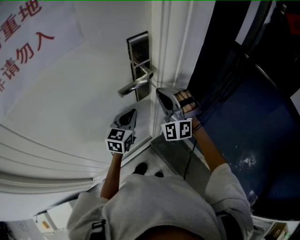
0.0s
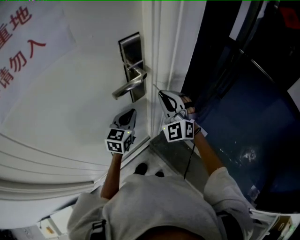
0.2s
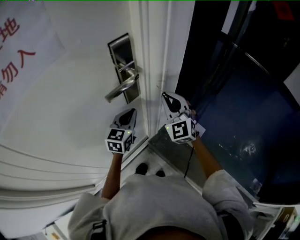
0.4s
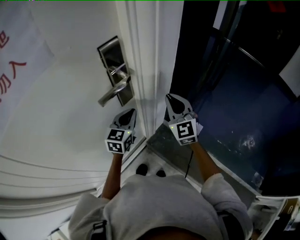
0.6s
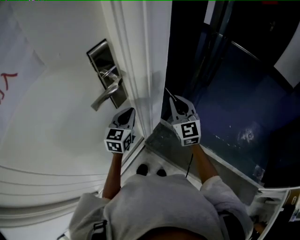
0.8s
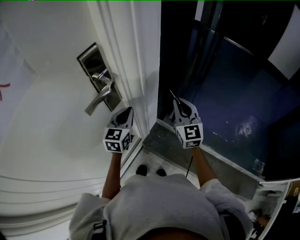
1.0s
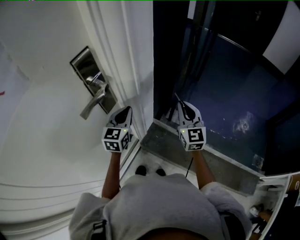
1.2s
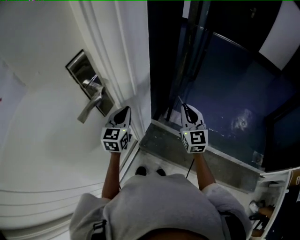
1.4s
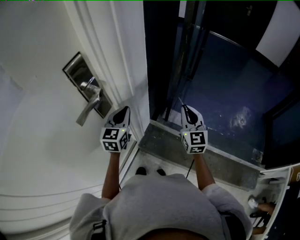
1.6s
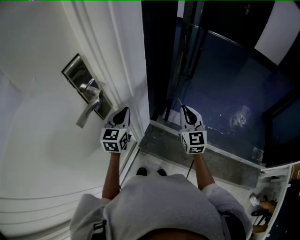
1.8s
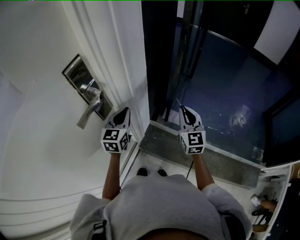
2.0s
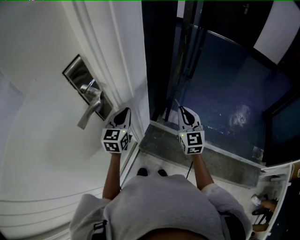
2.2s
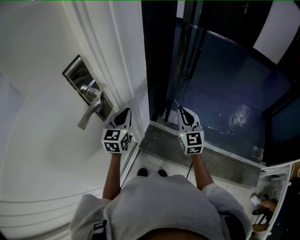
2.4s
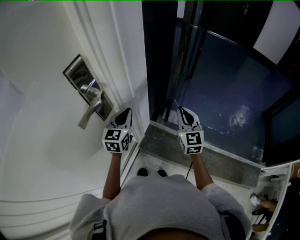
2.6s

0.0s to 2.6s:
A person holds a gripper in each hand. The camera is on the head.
0.0s to 1.2s: The right gripper moves to the right, about 25 cm, and rolls clockwise, seen from behind, by roughly 60 degrees, while the left gripper moves to the right and forward, roughly 10 cm.
1.2s to 2.6s: The grippers stay close to where they were, moving slightly.

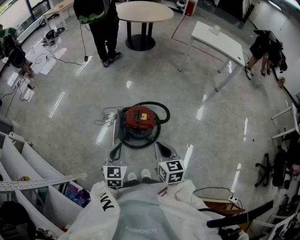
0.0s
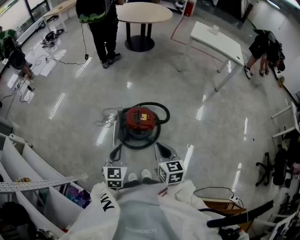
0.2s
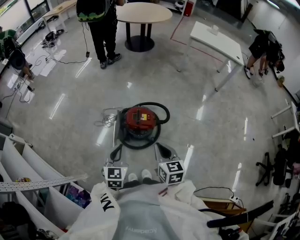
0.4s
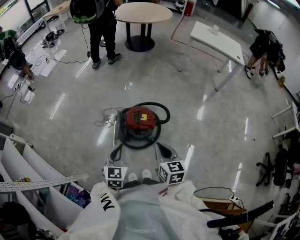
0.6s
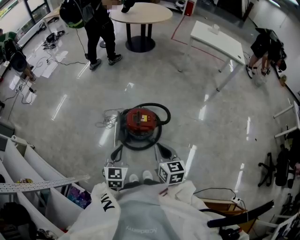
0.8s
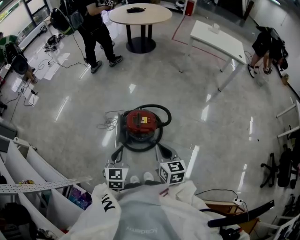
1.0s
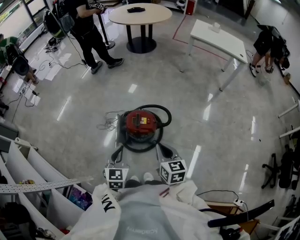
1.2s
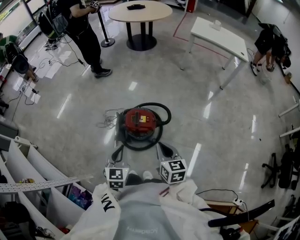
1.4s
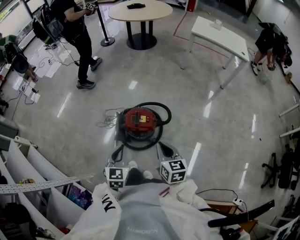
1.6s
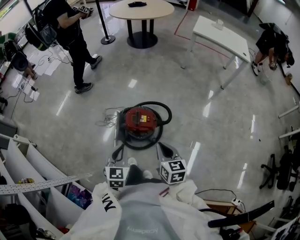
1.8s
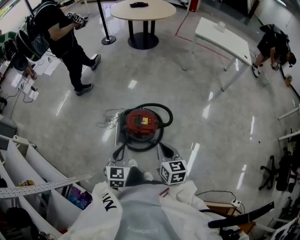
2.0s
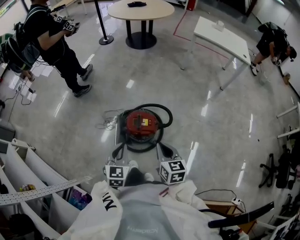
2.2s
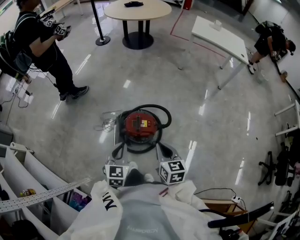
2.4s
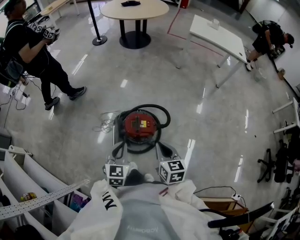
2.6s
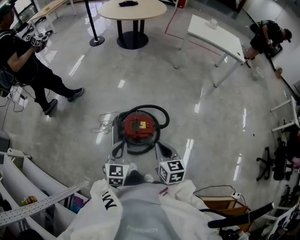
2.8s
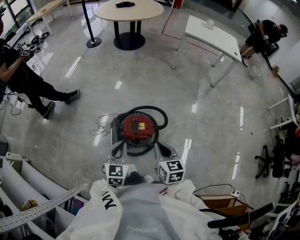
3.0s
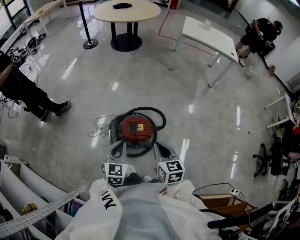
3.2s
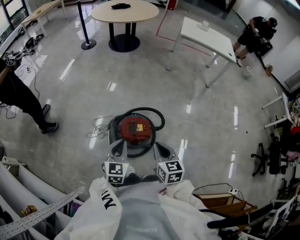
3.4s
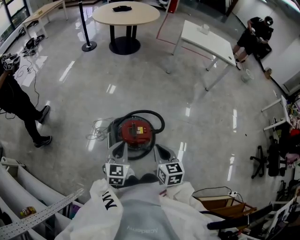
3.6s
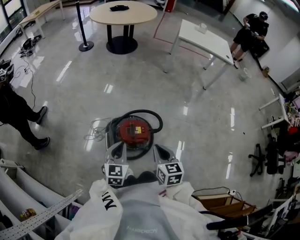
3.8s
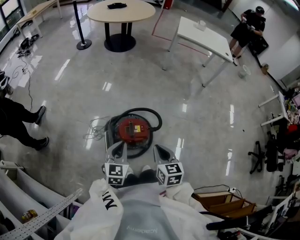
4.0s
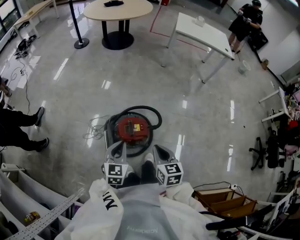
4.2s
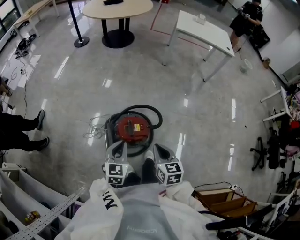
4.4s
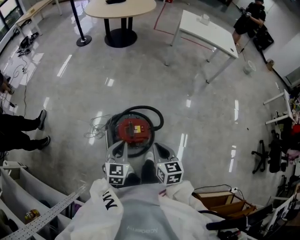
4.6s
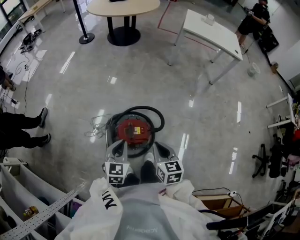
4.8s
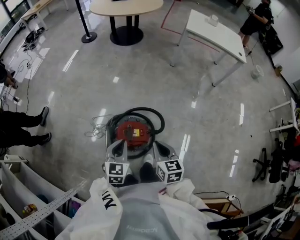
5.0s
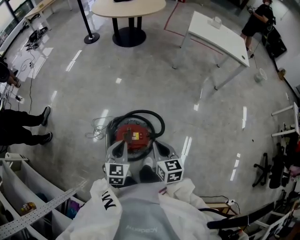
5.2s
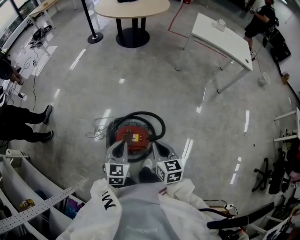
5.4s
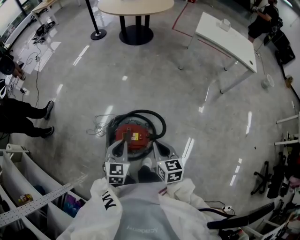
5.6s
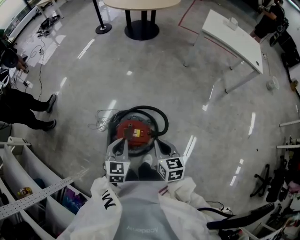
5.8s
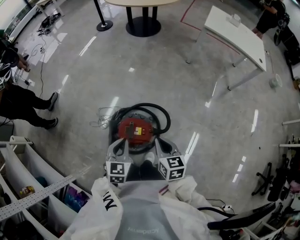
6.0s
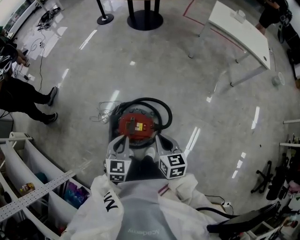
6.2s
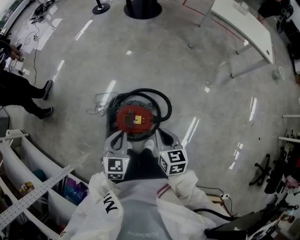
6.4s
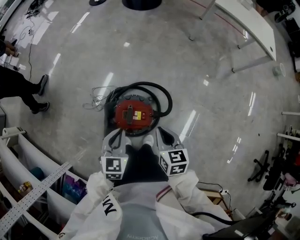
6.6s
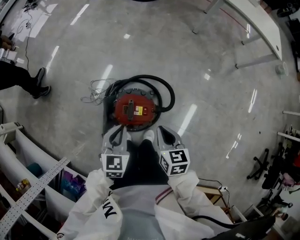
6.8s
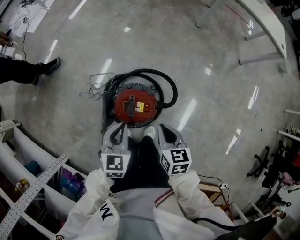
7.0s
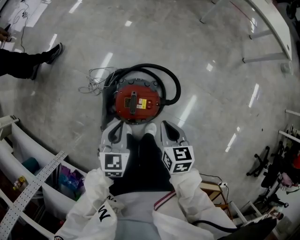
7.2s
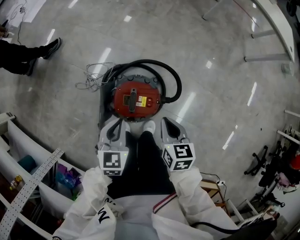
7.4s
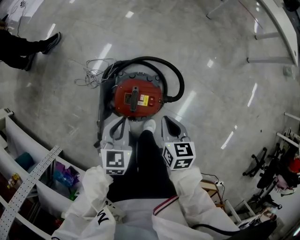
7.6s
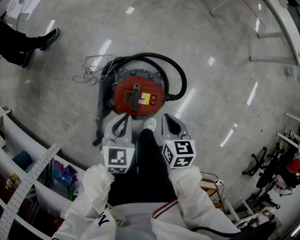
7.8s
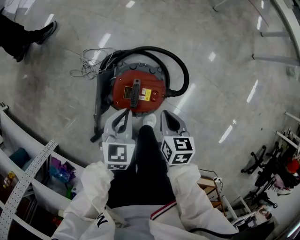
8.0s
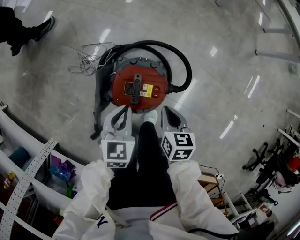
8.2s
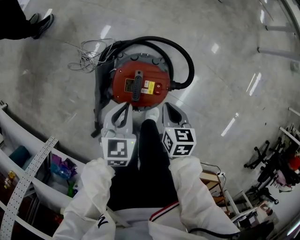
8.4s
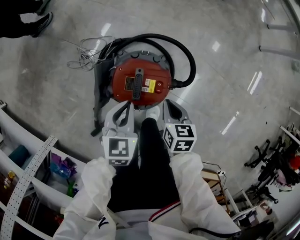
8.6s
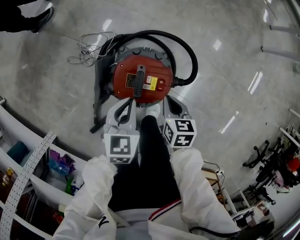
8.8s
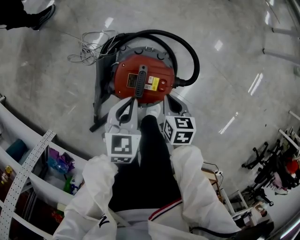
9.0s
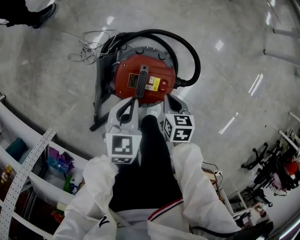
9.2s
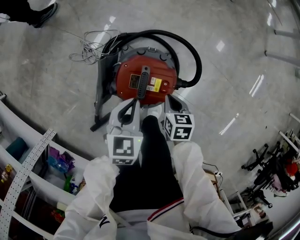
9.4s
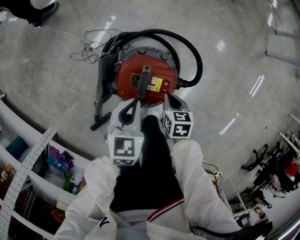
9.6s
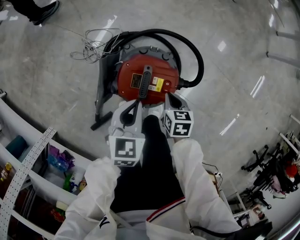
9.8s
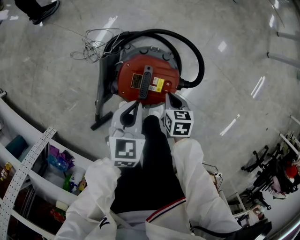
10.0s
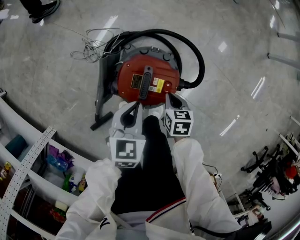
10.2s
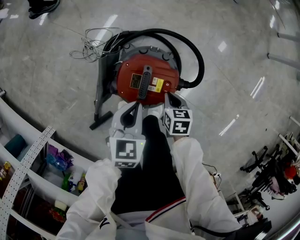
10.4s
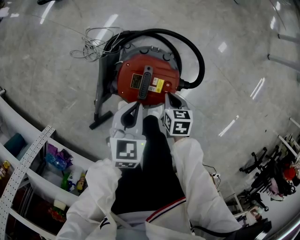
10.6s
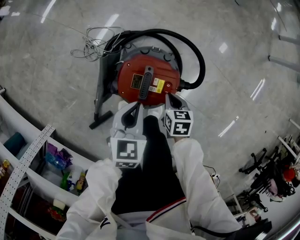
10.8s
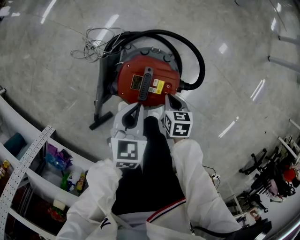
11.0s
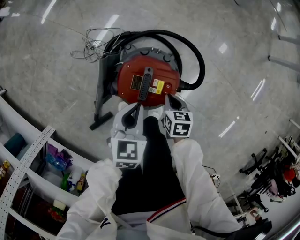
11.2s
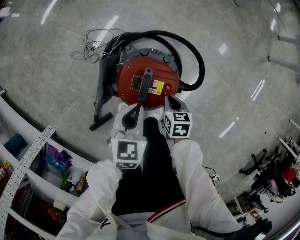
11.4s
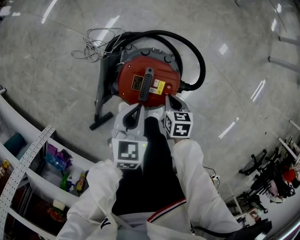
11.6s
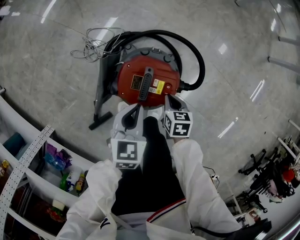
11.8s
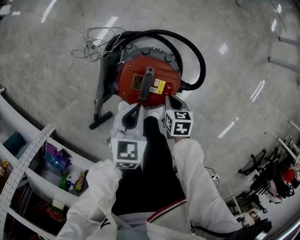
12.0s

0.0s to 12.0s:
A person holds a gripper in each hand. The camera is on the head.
0.0s to 1.6s: The left gripper ends up approximately 5 cm from where it was, while the right gripper ends up about 5 cm from where it was.
1.6s to 3.0s: Both grippers travel together forward, some 10 cm.
3.0s to 4.4s: The grippers stay close to where they were, moving slightly.
4.4s to 6.0s: The left gripper moves to the right and forward, roughly 10 cm, while the right gripper shifts roughly 15 cm forward and to the right.
6.0s to 7.6s: Both grippers travel together downward, some 15 cm.
7.6s to 9.0s: The left gripper heads downward, covering approximately 10 cm, while the right gripper travels downward by about 15 cm.
9.0s to 10.4s: The right gripper is displaced downward by about 5 cm.
10.4s to 12.0s: Neither gripper changes place.

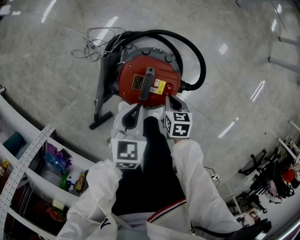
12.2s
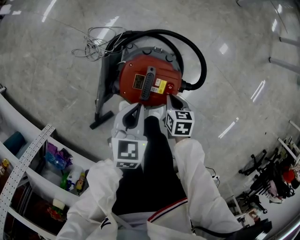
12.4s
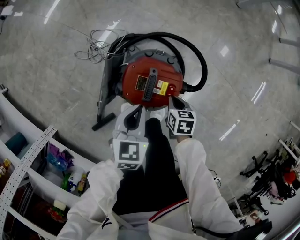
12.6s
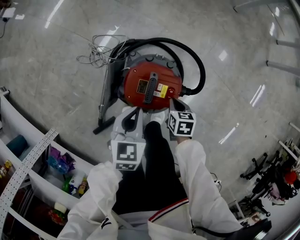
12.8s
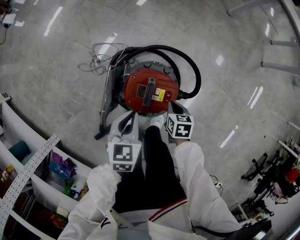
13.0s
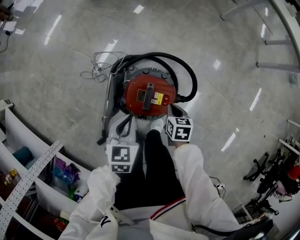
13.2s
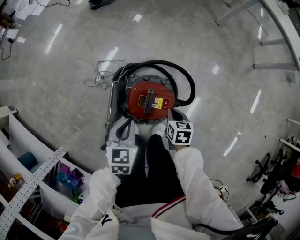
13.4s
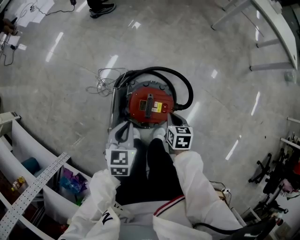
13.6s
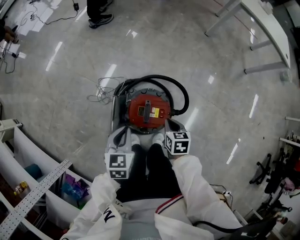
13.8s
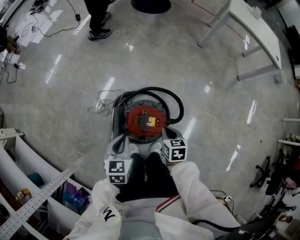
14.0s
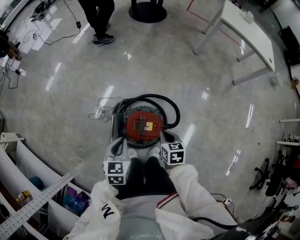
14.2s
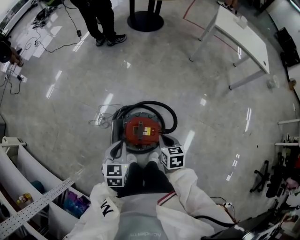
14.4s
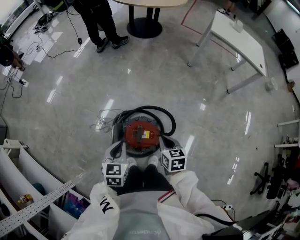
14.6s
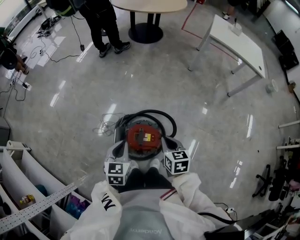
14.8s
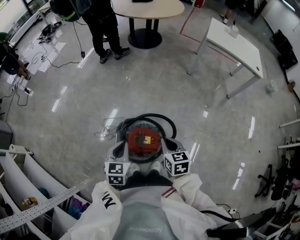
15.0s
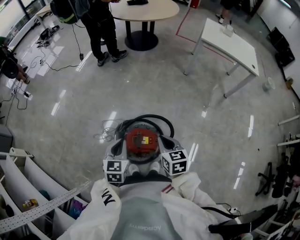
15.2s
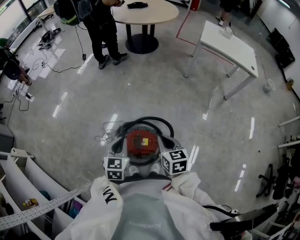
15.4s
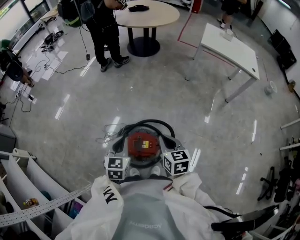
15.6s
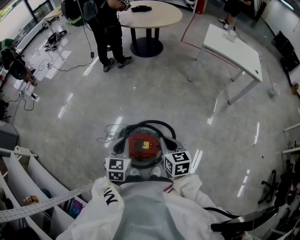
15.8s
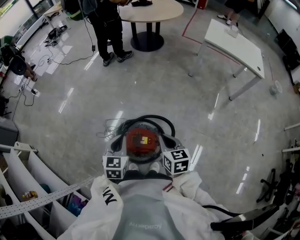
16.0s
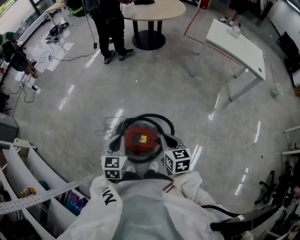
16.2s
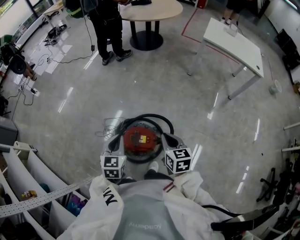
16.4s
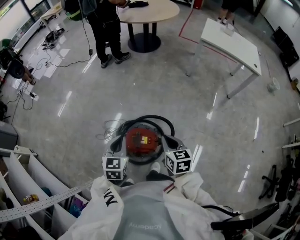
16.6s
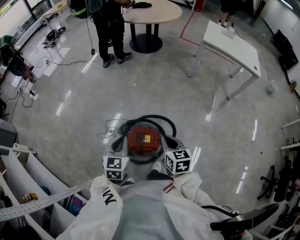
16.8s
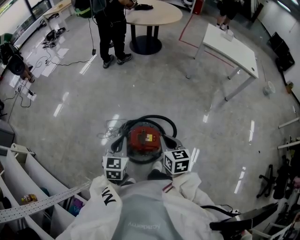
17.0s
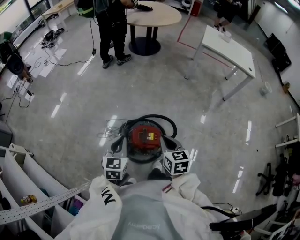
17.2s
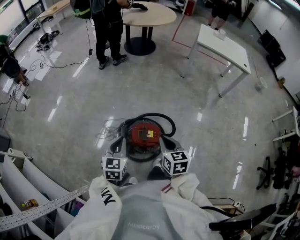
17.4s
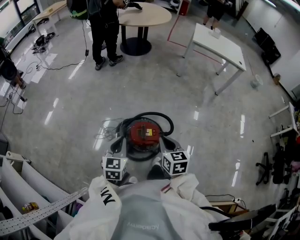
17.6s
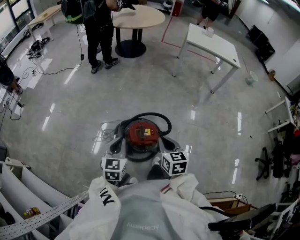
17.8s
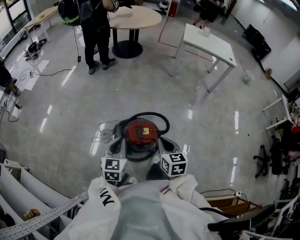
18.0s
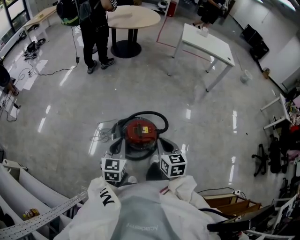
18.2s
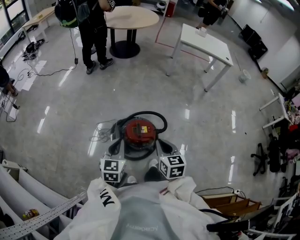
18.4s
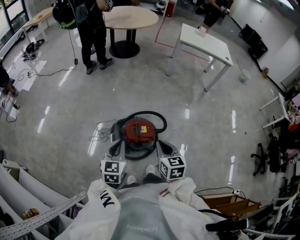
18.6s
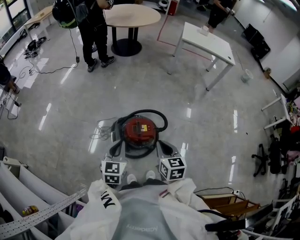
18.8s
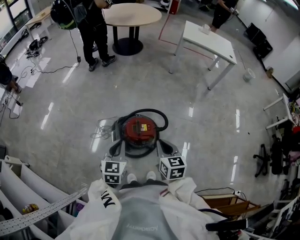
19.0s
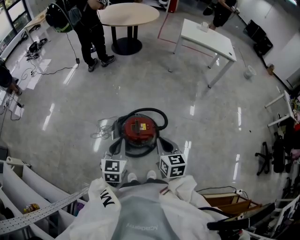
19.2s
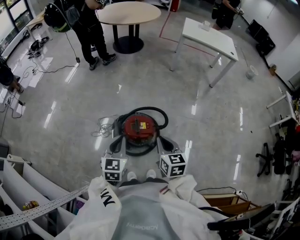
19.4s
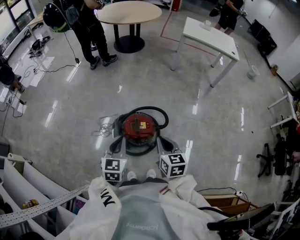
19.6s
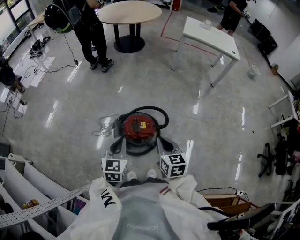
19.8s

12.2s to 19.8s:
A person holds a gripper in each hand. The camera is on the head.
12.2s to 13.8s: The right gripper is displaced upward by about 15 cm; the left gripper heads upward and to the left, covering approximately 15 cm.
13.8s to 15.2s: The right gripper travels upward by approximately 25 cm, and swivels approximately 20 degrees. The left gripper shifts about 15 cm upward.
15.2s to 16.8s: The grippers move only a little.
16.8s to 18.2s: Both grippers travel together backward and to the left, roughly 15 cm.
18.2s to 19.8s: The left gripper goes approximately 5 cm to the right.

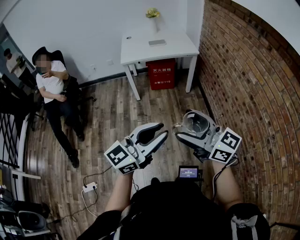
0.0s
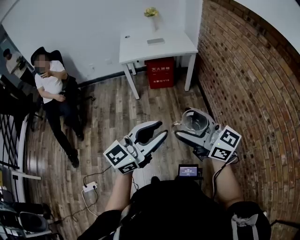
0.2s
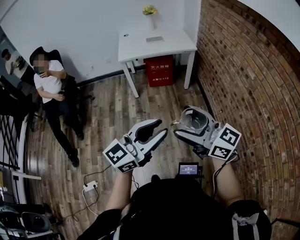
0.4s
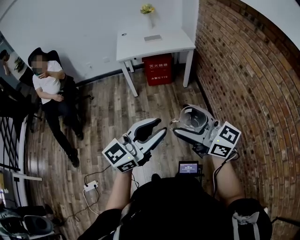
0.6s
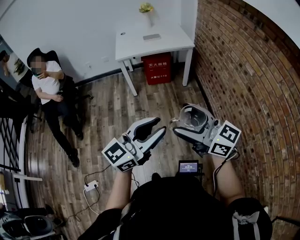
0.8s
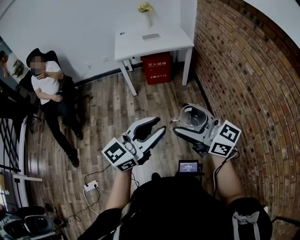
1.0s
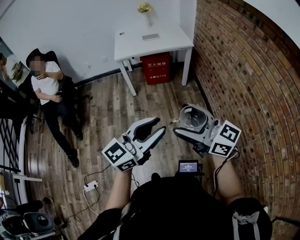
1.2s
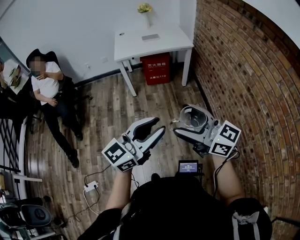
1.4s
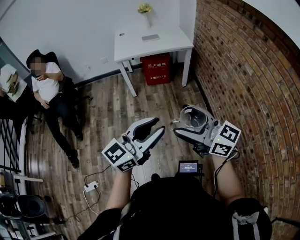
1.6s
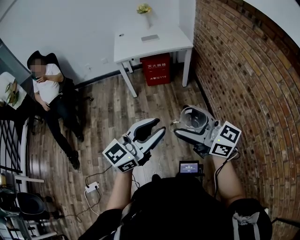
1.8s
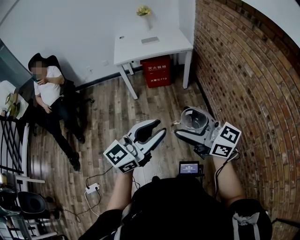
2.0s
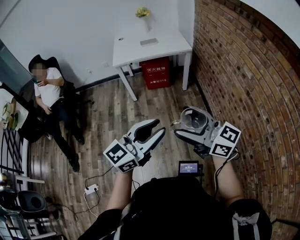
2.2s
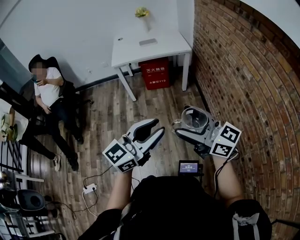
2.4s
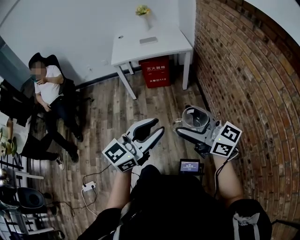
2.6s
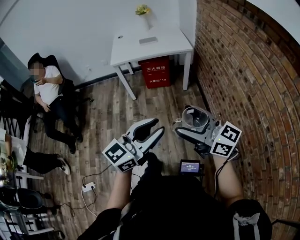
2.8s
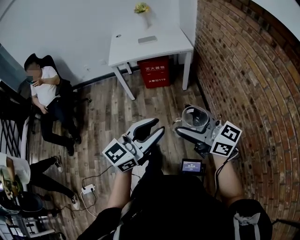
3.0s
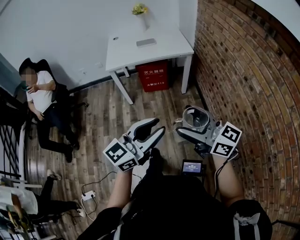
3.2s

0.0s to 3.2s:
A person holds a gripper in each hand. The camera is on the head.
0.0s to 1.6s: The grippers stay close to where they were, moving slightly.
1.6s to 3.2s: The right gripper travels forward and to the right by some 20 cm. Meanwhile the left gripper shifts about 15 cm forward.
